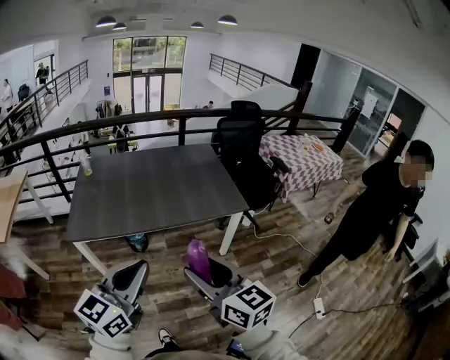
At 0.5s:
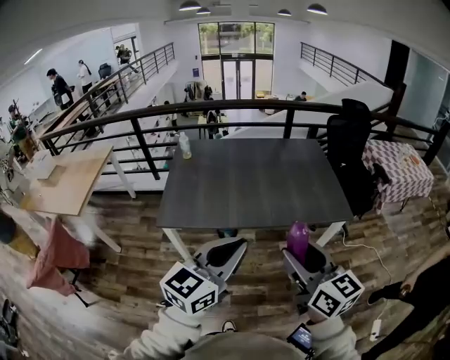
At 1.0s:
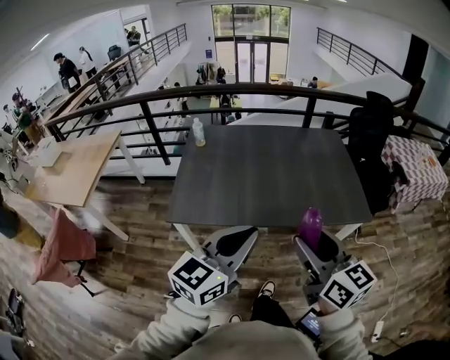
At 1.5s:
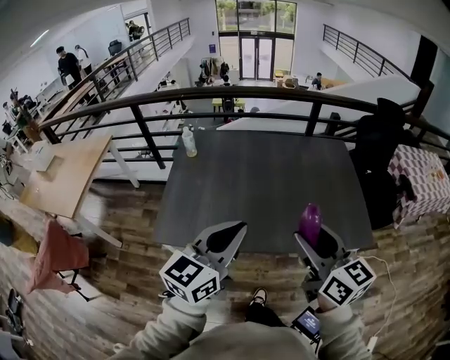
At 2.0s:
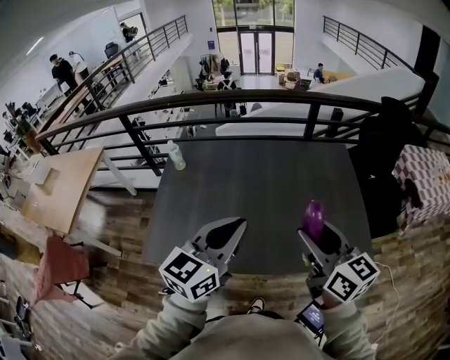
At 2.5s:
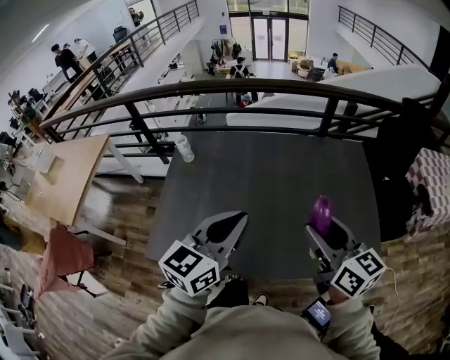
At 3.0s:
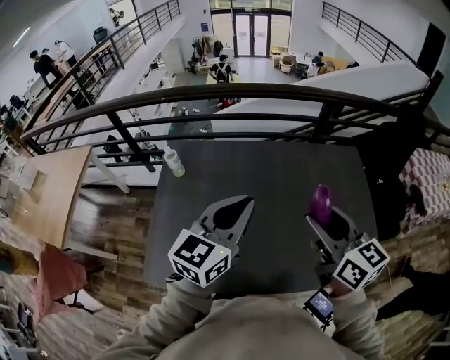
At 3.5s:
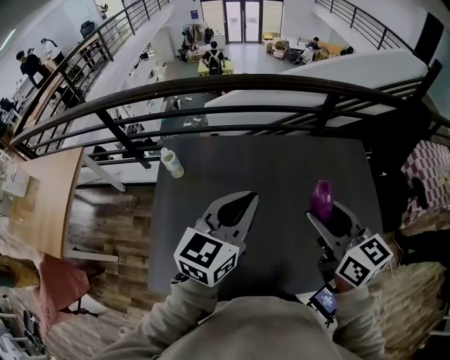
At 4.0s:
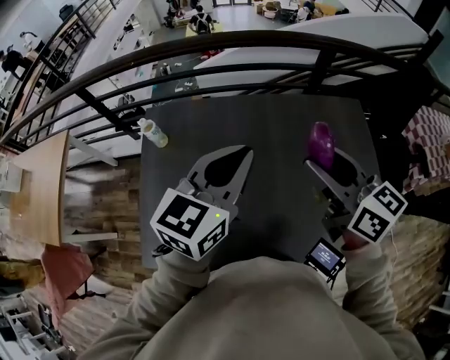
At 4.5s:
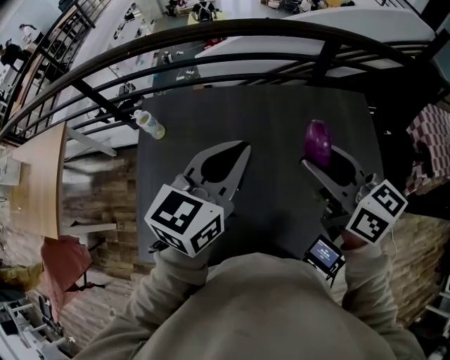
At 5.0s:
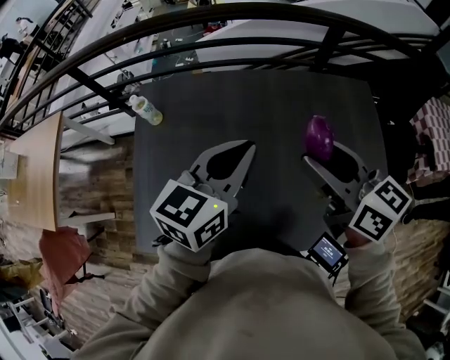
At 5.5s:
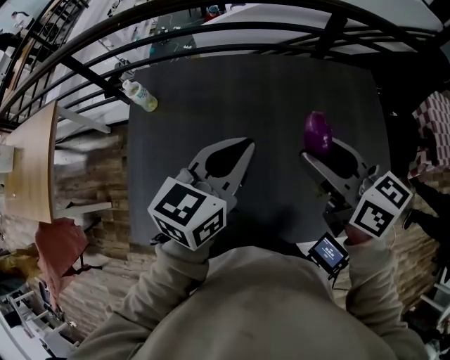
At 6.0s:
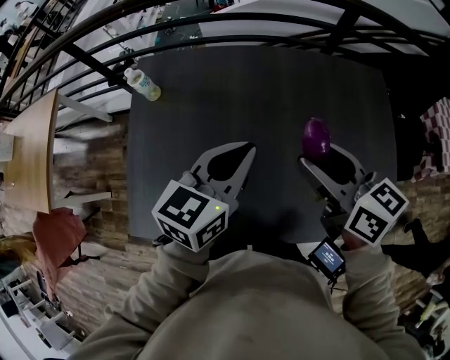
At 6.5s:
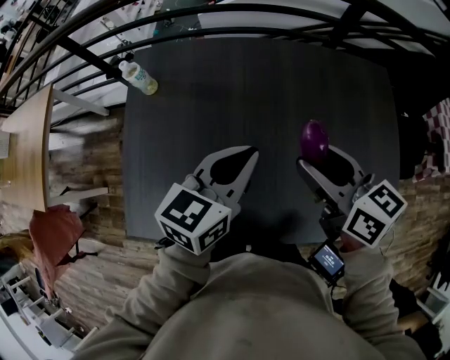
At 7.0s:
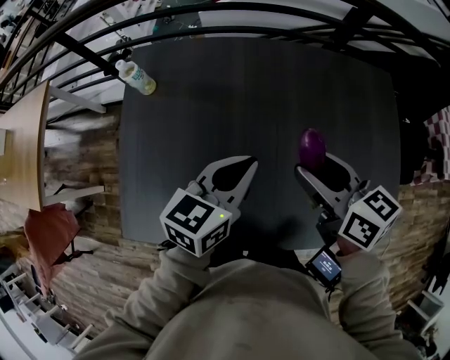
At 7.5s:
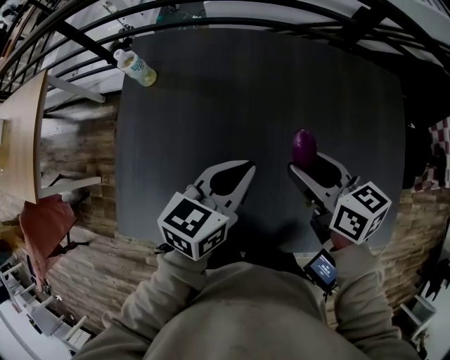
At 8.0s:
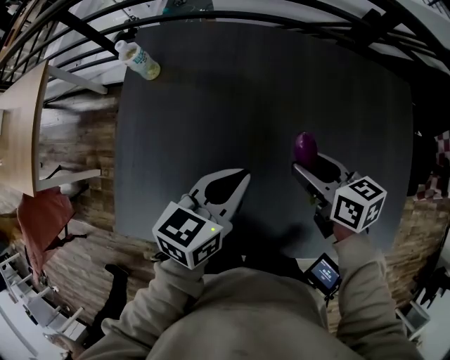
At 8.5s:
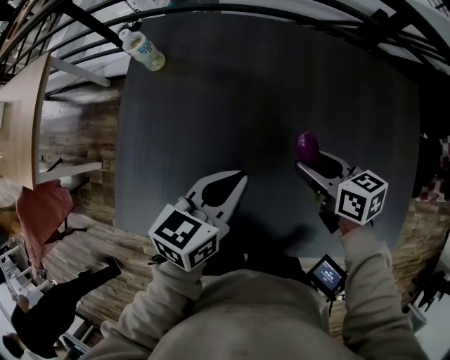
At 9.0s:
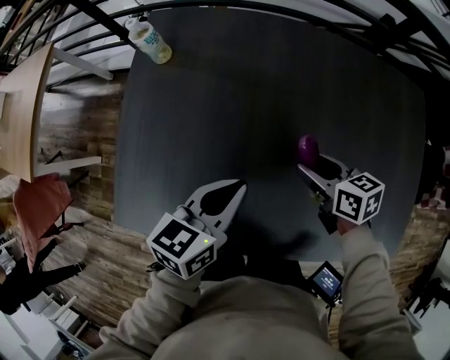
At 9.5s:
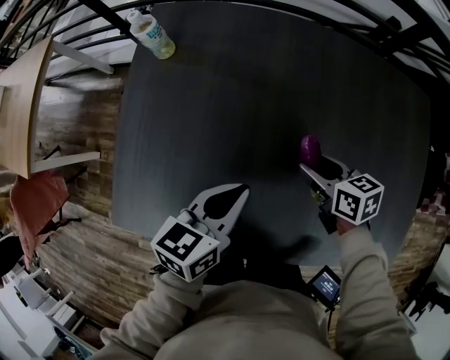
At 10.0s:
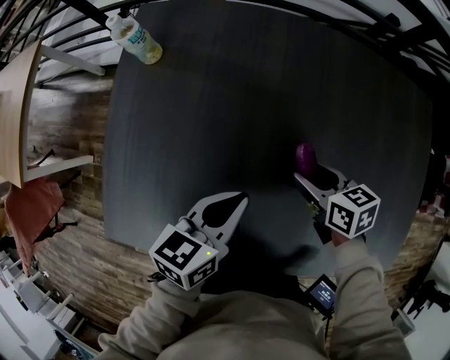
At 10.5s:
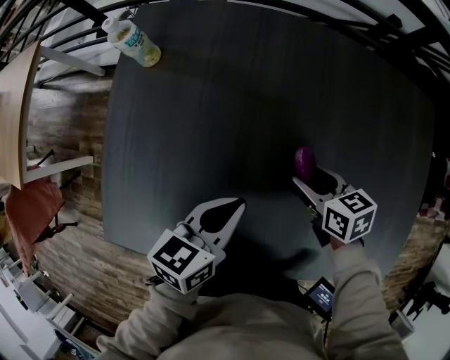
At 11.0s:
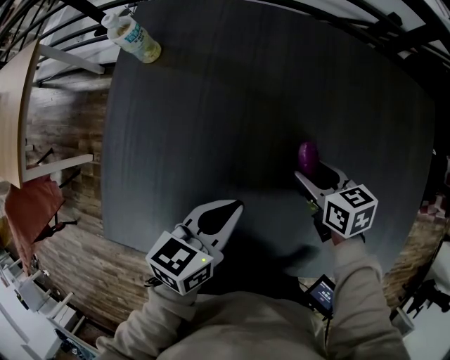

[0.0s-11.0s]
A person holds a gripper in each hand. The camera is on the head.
0.0s to 2.0s: The two grippers travel together, forward, about 50 cm.
2.0s to 3.5s: The left gripper is displaced forward by approximately 20 cm. Meanwhile the right gripper shifts some 20 cm forward and to the left.
3.5s to 5.5s: The grippers both shift downward by about 5 cm.
5.5s to 7.5s: The two grippers go approximately 15 cm downward.
7.5s to 9.0s: The right gripper heads downward, covering approximately 15 cm, while the left gripper heads to the left and downward, covering some 10 cm.
9.0s to 11.0s: The grippers both shift downward by approximately 5 cm.

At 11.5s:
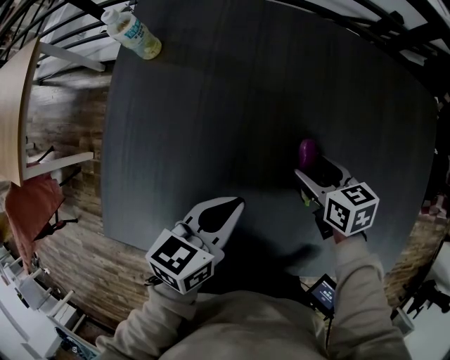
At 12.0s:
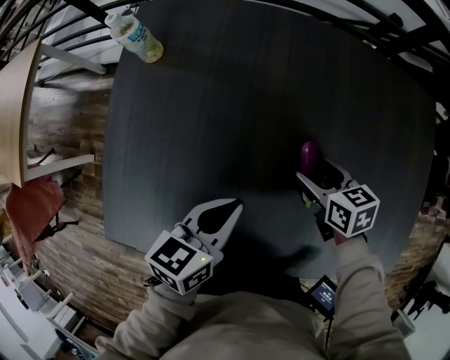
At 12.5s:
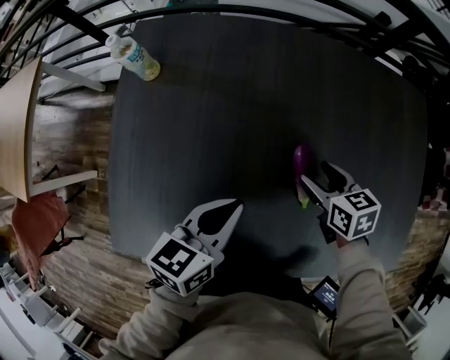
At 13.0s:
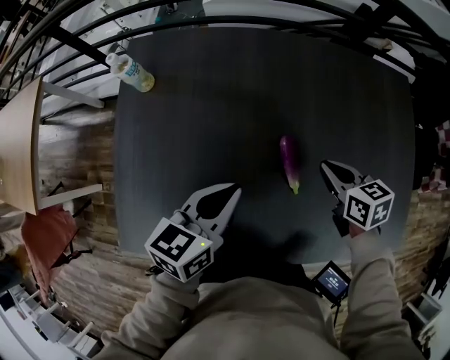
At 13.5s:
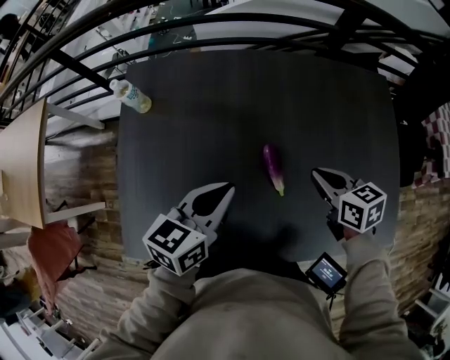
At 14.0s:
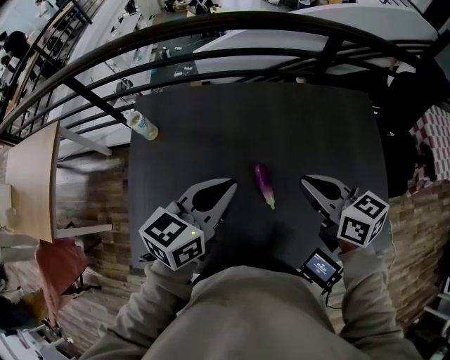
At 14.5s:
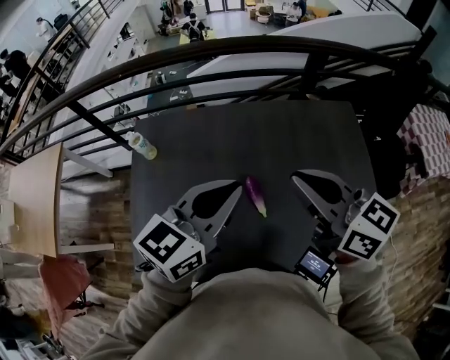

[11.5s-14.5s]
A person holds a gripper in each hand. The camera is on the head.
11.5s to 13.0s: The left gripper moves upward, about 5 cm; the right gripper is displaced upward and to the right by some 10 cm, and closes up.
13.0s to 14.5s: Both grippers travel together upward, roughly 30 cm. The right gripper points its fingers roughly 40 degrees further upward. The left gripper rotates about 30 degrees.

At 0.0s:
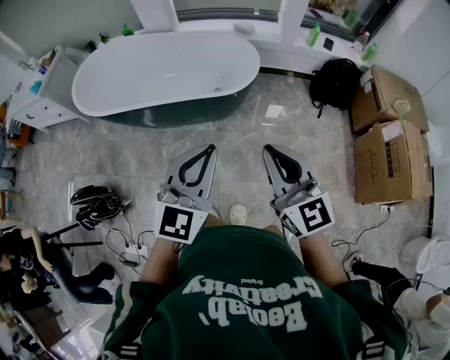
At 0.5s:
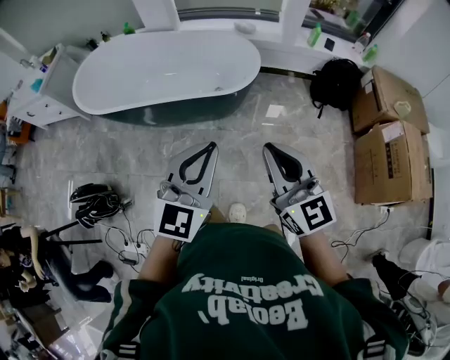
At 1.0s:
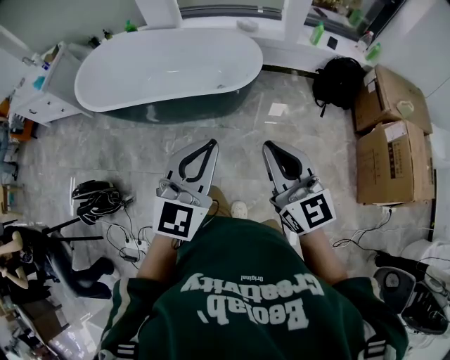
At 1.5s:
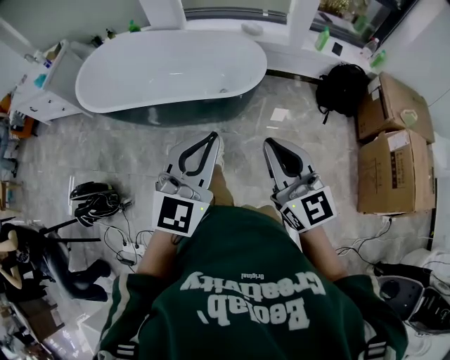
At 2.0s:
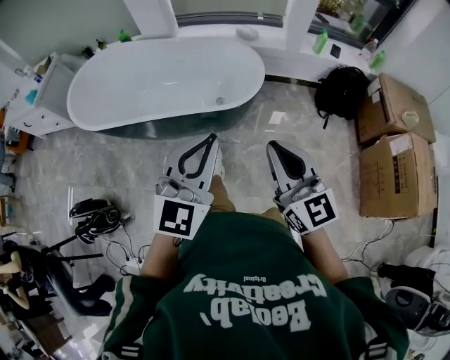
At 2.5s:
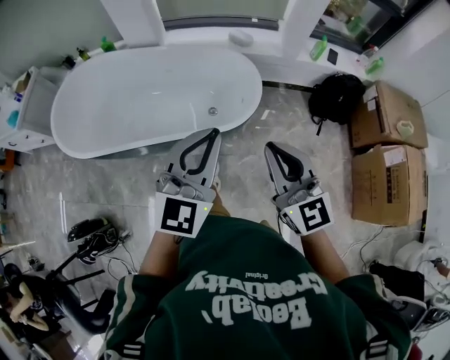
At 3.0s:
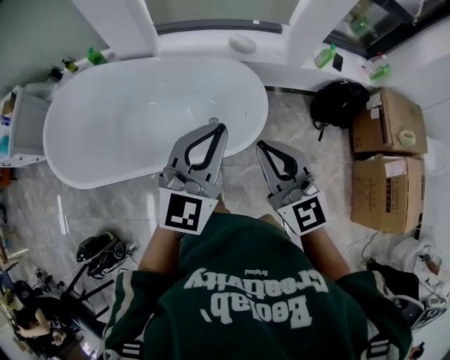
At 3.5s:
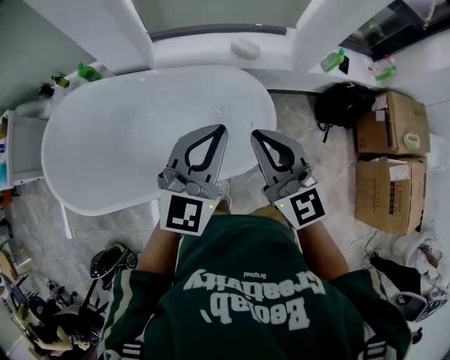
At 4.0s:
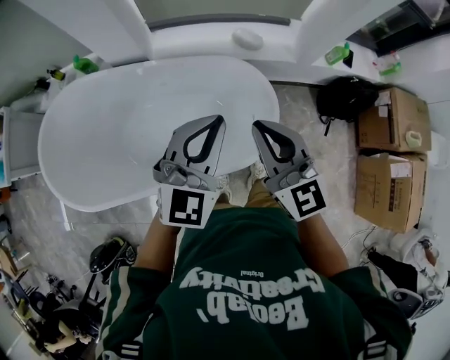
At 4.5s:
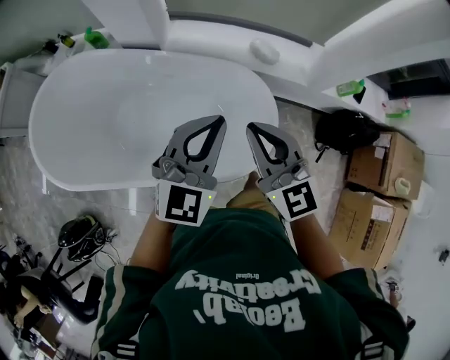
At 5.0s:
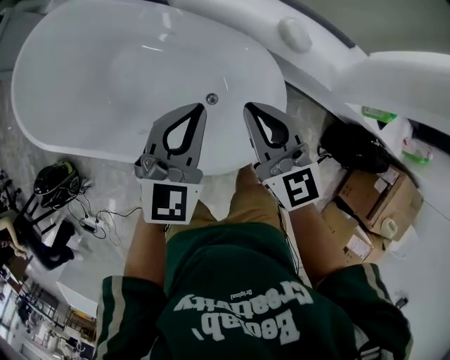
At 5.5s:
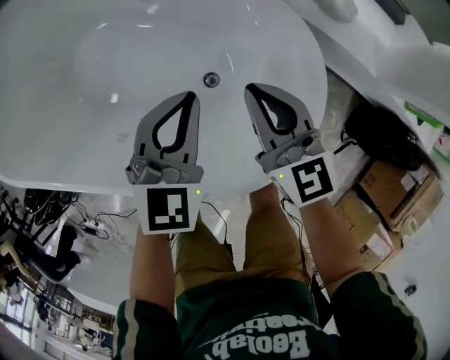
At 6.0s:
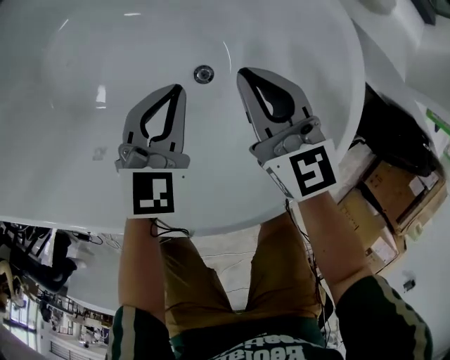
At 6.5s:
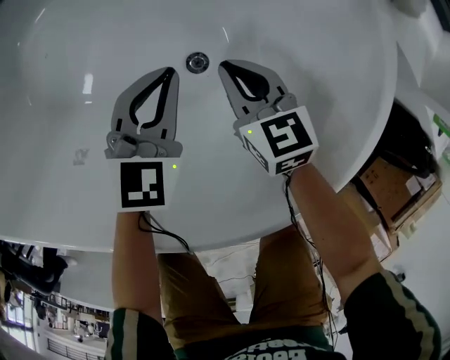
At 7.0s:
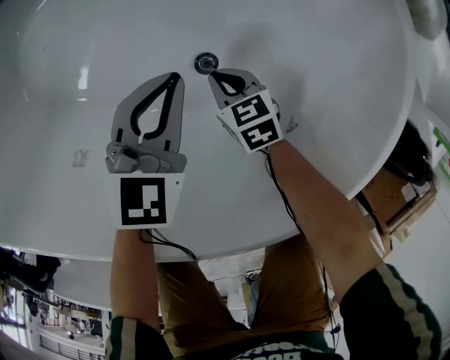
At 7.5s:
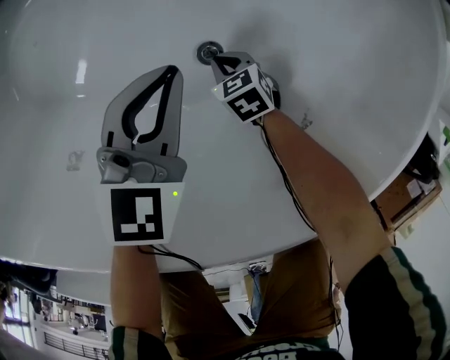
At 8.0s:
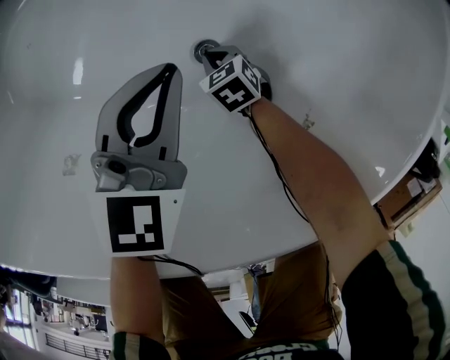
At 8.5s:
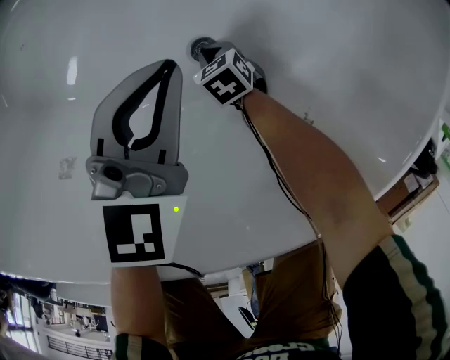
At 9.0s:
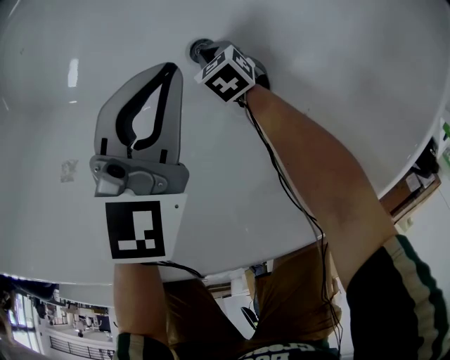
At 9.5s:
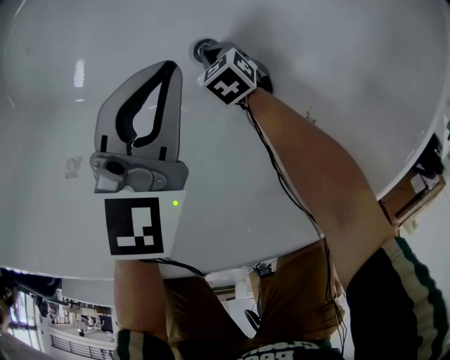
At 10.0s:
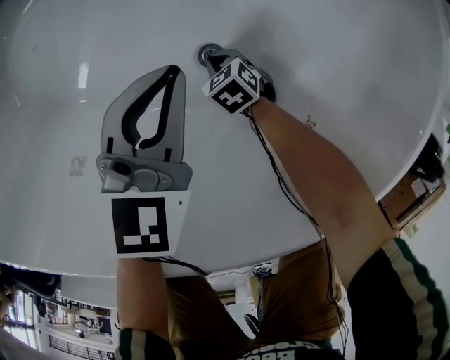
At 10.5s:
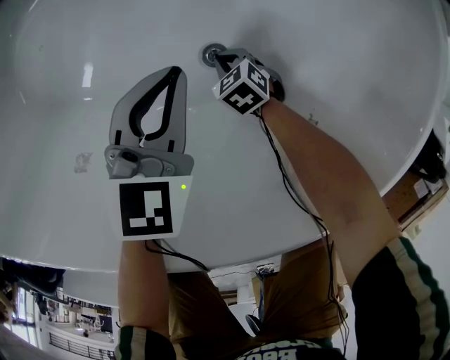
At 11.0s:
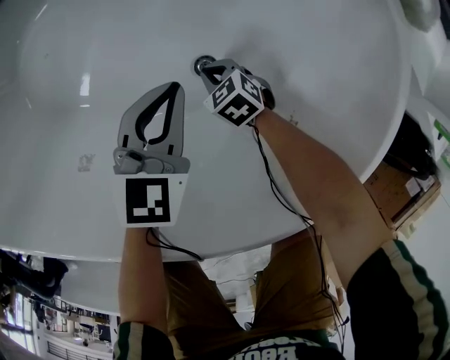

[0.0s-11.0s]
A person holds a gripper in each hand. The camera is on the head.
0.0s to 2.0s: The two grippers go about 10 cm forward.
2.0s to 3.5s: Both grippers are carried forward, some 50 cm.
3.5s to 5.5s: Both grippers travel together downward, about 40 cm. The right gripper changes its angle by some 30 degrees, while the left gripper turns by about 40 degrees.
5.5s to 7.5s: The right gripper travels downward by roughly 50 cm, and tilts its fingers roughly 40 degrees downward. Meanwhile the left gripper goes some 25 cm downward.
7.5s to 9.0s: The right gripper ends up approximately 5 cm from where it was.
9.0s to 11.0s: The right gripper is displaced upward by some 10 cm.

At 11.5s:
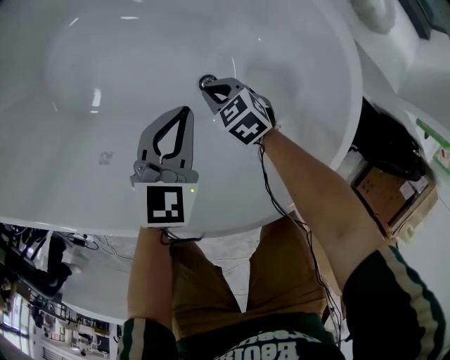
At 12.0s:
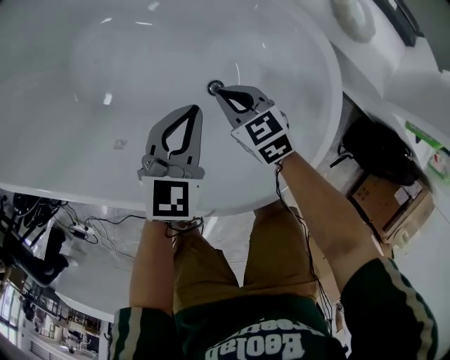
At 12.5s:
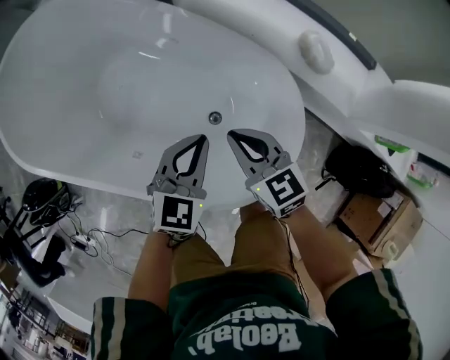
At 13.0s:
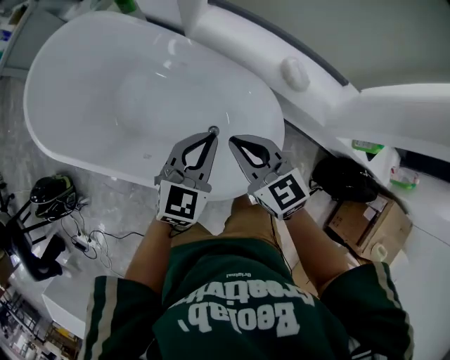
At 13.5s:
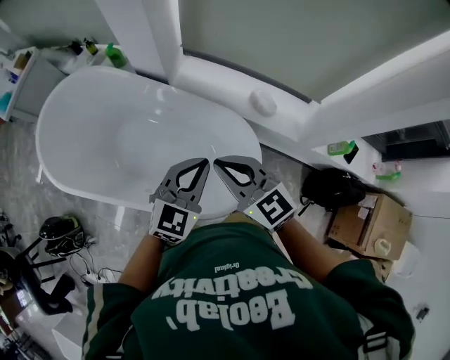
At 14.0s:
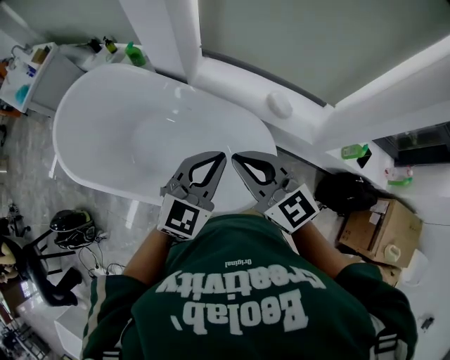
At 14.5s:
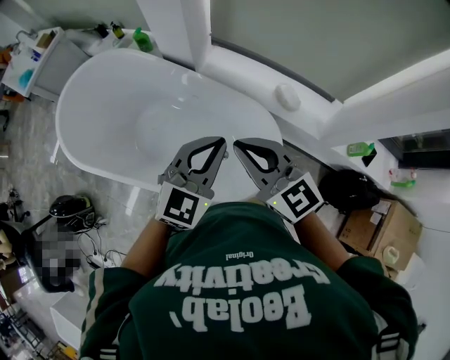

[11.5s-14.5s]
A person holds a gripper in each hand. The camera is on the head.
11.5s to 13.0s: Both grippers travel together upward, about 50 cm. The right gripper changes its angle by about 30 degrees.
13.0s to 14.5s: The two grippers go some 15 cm upward.
